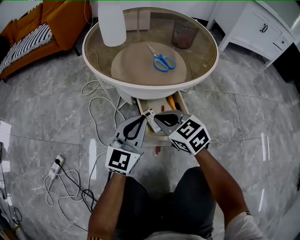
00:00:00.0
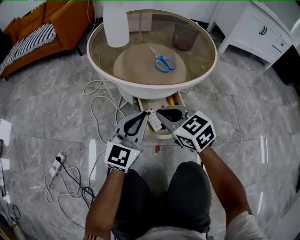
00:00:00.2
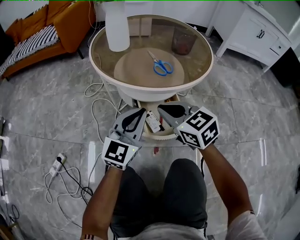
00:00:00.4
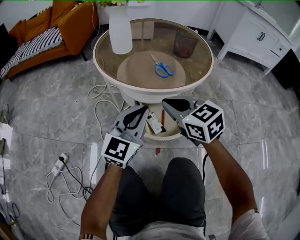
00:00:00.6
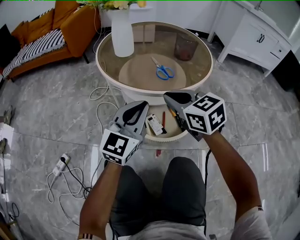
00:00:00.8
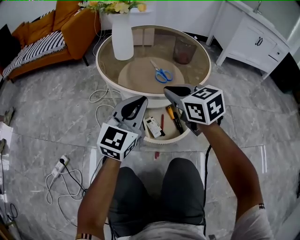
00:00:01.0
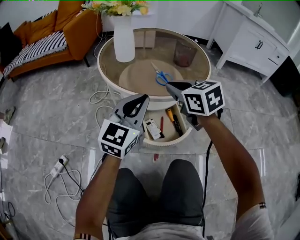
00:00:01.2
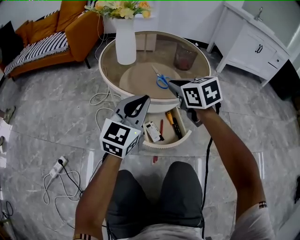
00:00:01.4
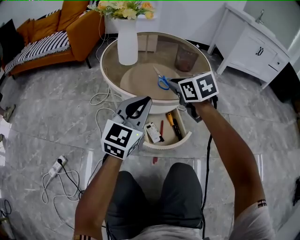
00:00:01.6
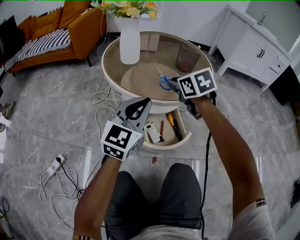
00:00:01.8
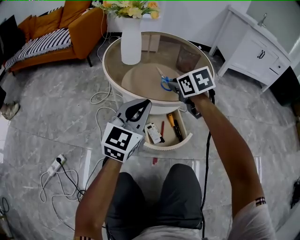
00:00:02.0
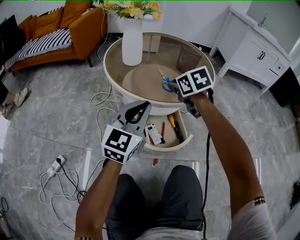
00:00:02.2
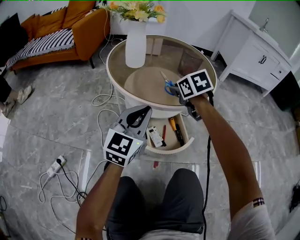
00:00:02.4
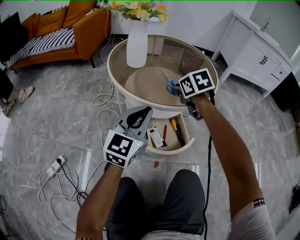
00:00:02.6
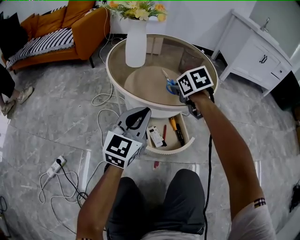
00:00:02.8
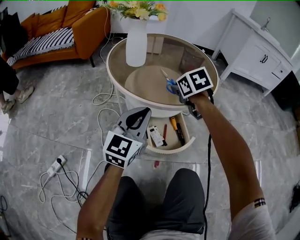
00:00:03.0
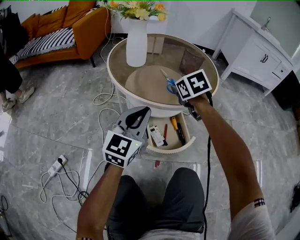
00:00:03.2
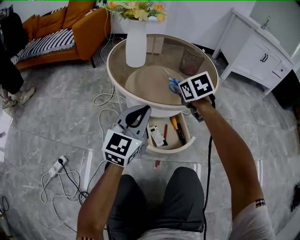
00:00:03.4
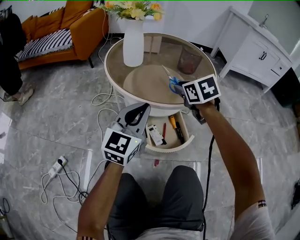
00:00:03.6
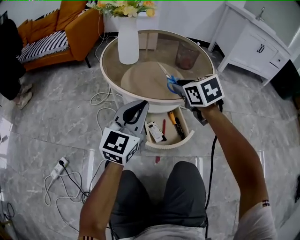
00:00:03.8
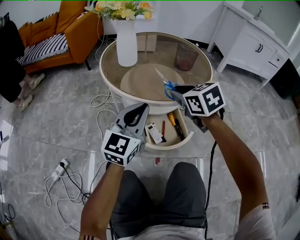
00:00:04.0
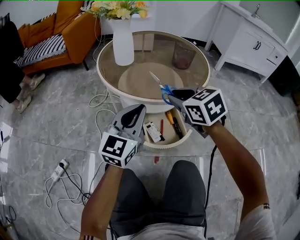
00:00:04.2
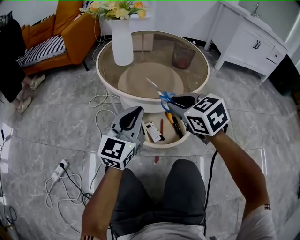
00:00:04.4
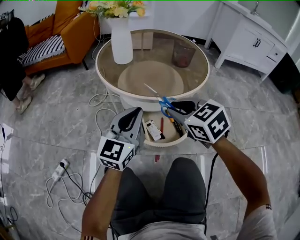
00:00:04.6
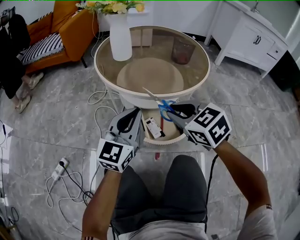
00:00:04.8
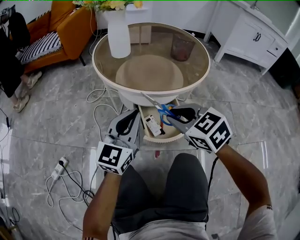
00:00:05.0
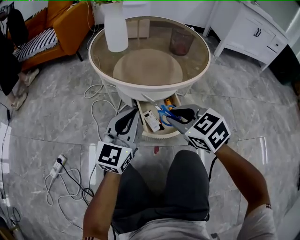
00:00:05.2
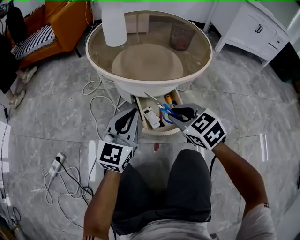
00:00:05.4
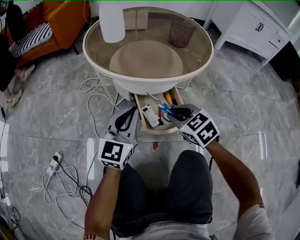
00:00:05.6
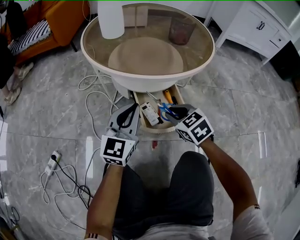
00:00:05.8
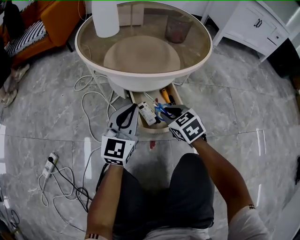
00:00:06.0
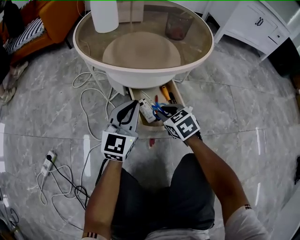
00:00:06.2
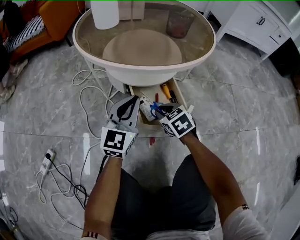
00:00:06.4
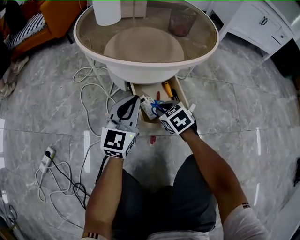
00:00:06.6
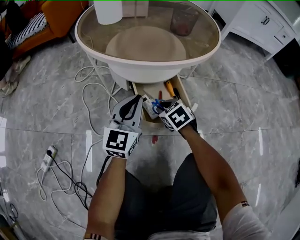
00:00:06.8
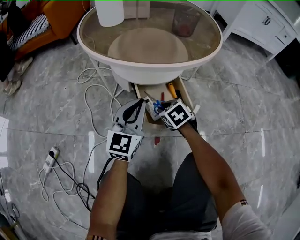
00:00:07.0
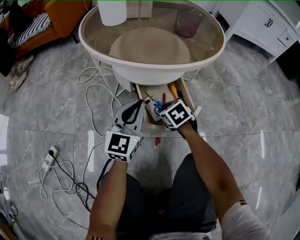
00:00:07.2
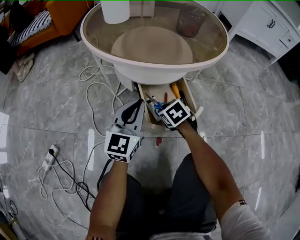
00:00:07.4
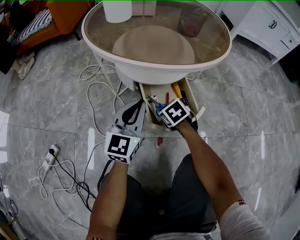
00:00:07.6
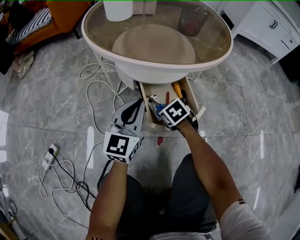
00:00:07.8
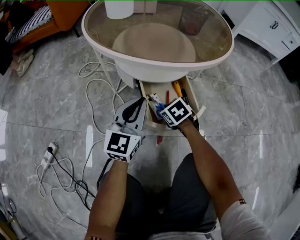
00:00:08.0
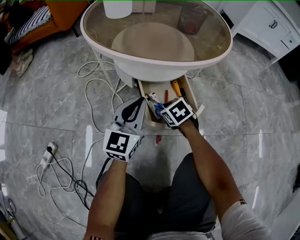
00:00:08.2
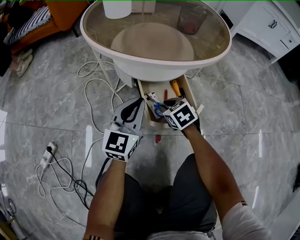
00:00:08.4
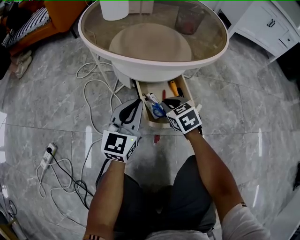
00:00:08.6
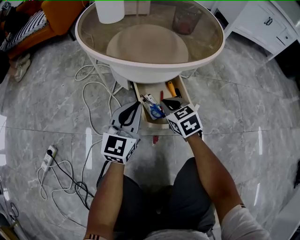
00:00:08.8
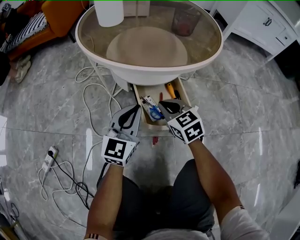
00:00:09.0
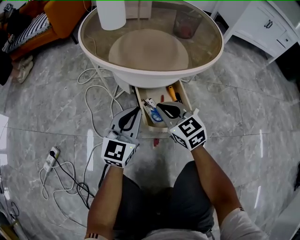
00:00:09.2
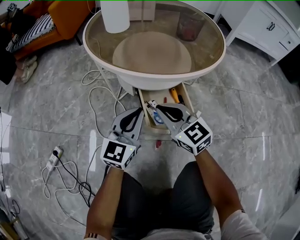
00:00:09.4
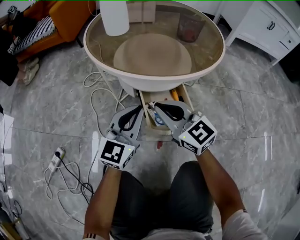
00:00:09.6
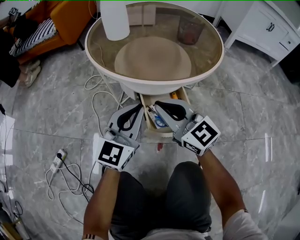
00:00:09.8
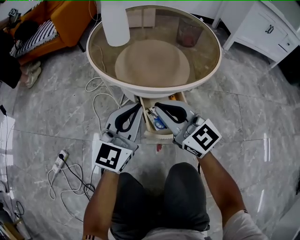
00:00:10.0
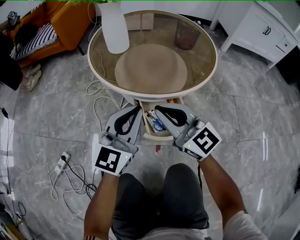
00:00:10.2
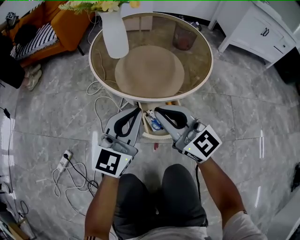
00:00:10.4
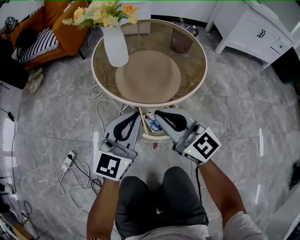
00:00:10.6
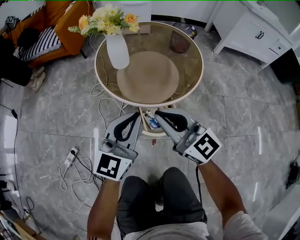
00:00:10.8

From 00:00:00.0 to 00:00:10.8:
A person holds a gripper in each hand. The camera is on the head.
From 00:00:00.0 to 00:00:01.6: The left gripper goes about 15 cm upward; the right gripper travels upward and forward by about 20 cm.
From 00:00:01.6 to 00:00:03.0: The right gripper moves approximately 5 cm.
From 00:00:03.0 to 00:00:04.6: The right gripper moves backward, about 15 cm, and changes its angle by roughly 20 degrees.
From 00:00:04.6 to 00:00:06.2: The left gripper heads downward, covering about 15 cm, while the right gripper is displaced downward by roughly 25 cm.
From 00:00:06.2 to 00:00:07.8: The right gripper shifts roughly 10 cm downward.
From 00:00:07.8 to 00:00:09.2: The right gripper is displaced upward by about 15 cm, and tips its fingers upward by some 40 degrees.
From 00:00:09.2 to 00:00:10.8: The grippers both shift upward by approximately 35 cm. The right gripper rotates some 30 degrees.

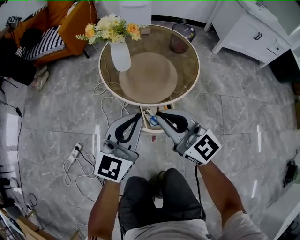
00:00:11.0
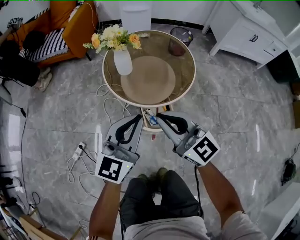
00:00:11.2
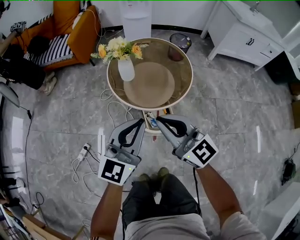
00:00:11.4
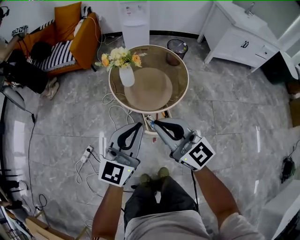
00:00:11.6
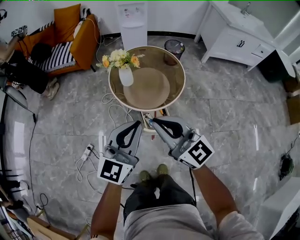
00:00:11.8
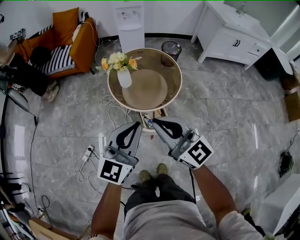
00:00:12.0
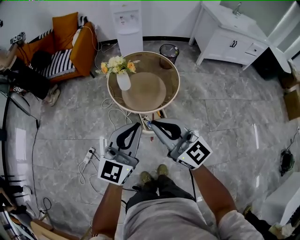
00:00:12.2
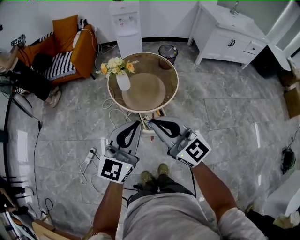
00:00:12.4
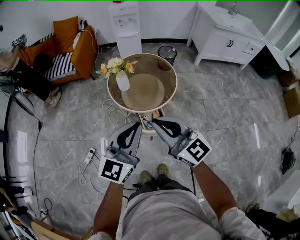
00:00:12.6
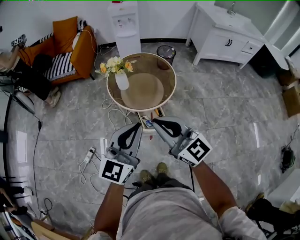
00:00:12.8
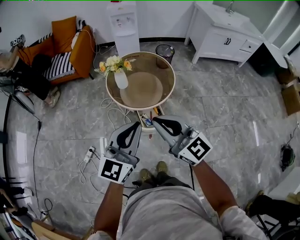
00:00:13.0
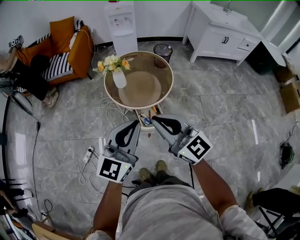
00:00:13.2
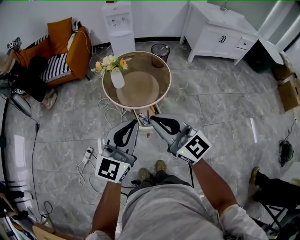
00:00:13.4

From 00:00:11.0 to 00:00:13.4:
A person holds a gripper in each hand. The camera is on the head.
From 00:00:11.0 to 00:00:12.2: Both grippers move upward, about 30 cm.
From 00:00:12.2 to 00:00:13.4: The two grippers go some 5 cm backward.

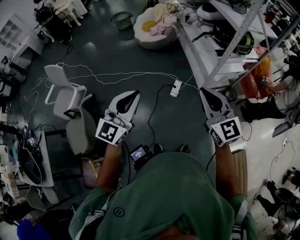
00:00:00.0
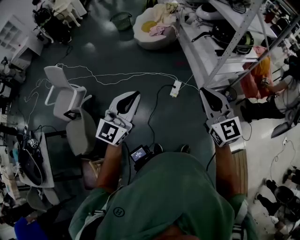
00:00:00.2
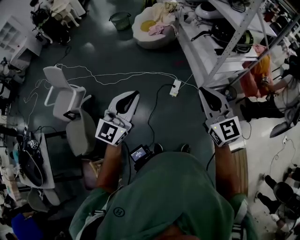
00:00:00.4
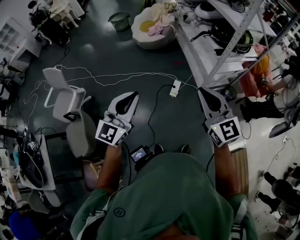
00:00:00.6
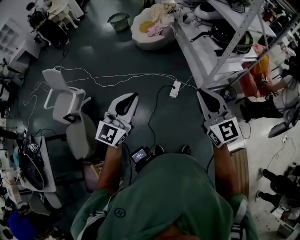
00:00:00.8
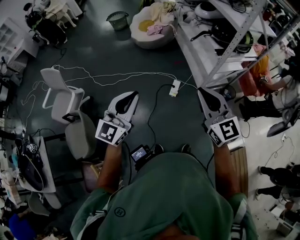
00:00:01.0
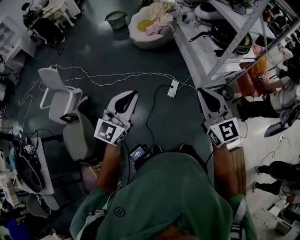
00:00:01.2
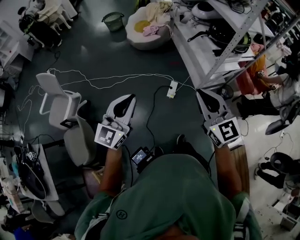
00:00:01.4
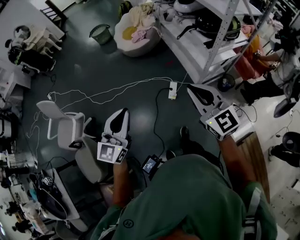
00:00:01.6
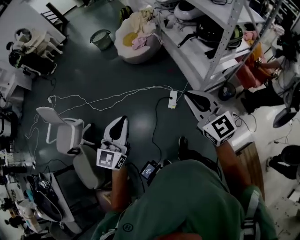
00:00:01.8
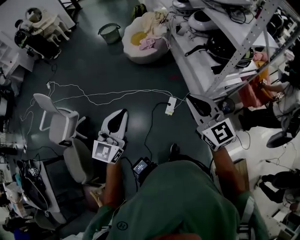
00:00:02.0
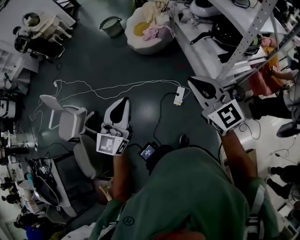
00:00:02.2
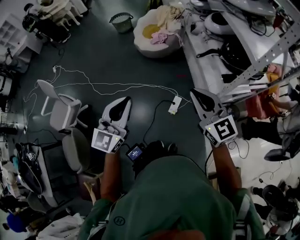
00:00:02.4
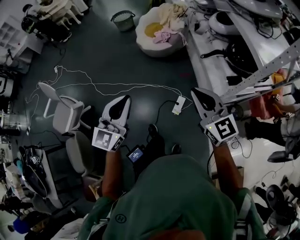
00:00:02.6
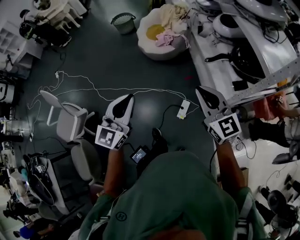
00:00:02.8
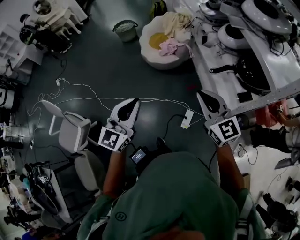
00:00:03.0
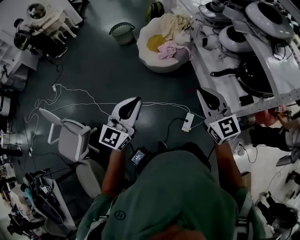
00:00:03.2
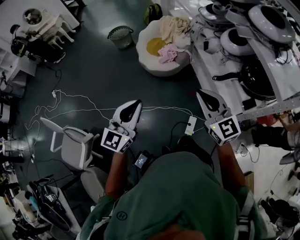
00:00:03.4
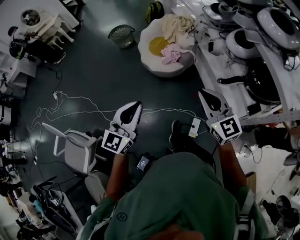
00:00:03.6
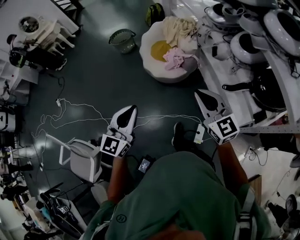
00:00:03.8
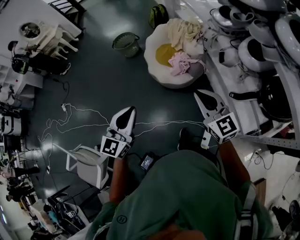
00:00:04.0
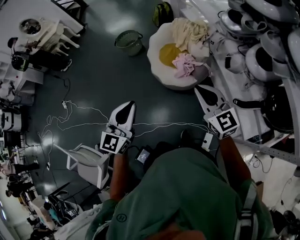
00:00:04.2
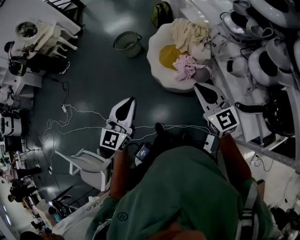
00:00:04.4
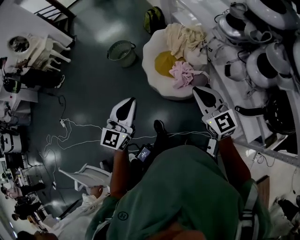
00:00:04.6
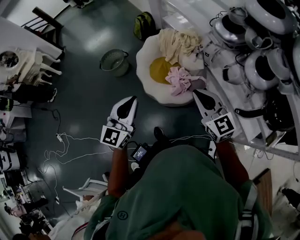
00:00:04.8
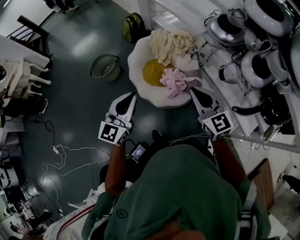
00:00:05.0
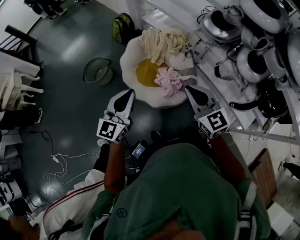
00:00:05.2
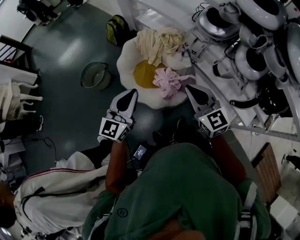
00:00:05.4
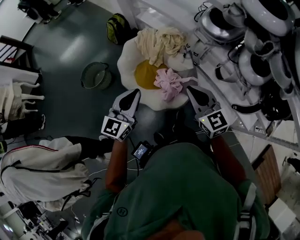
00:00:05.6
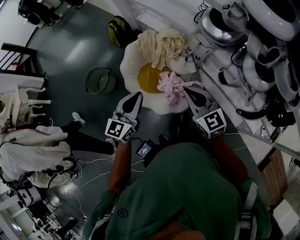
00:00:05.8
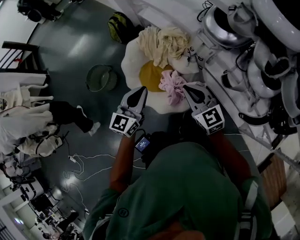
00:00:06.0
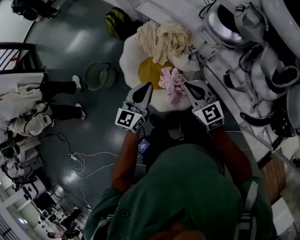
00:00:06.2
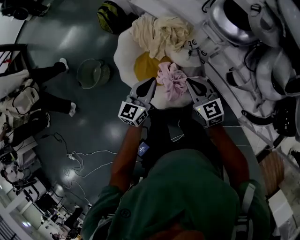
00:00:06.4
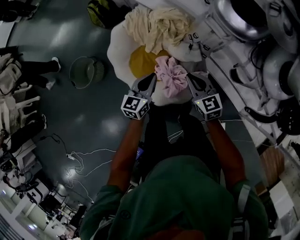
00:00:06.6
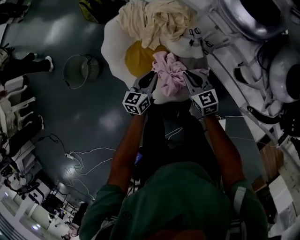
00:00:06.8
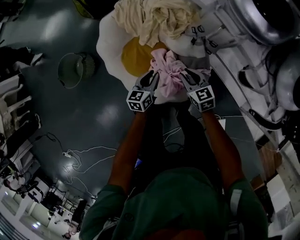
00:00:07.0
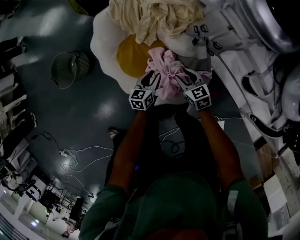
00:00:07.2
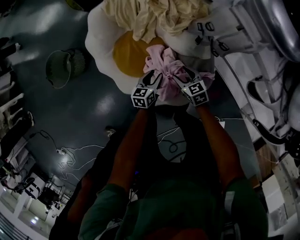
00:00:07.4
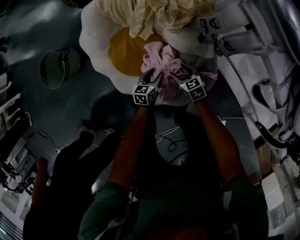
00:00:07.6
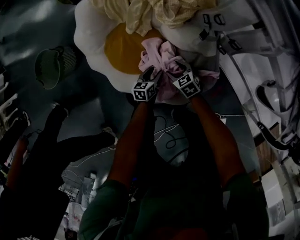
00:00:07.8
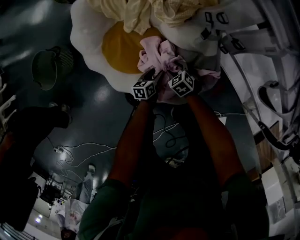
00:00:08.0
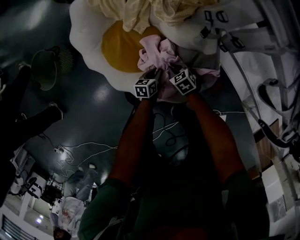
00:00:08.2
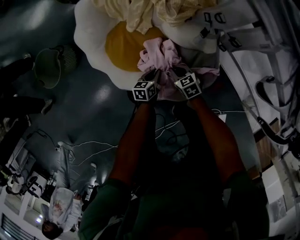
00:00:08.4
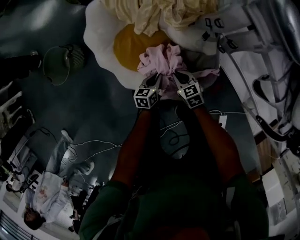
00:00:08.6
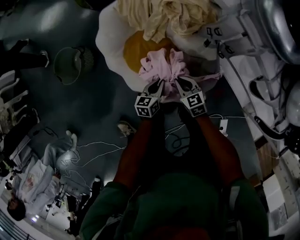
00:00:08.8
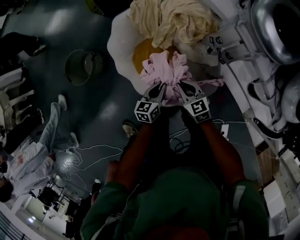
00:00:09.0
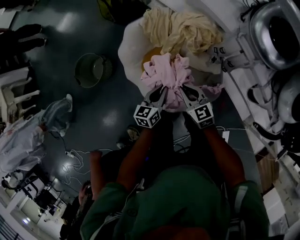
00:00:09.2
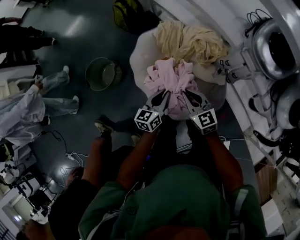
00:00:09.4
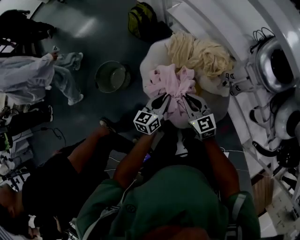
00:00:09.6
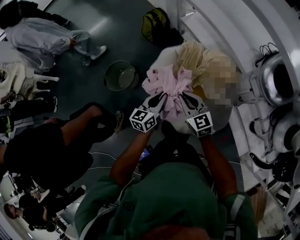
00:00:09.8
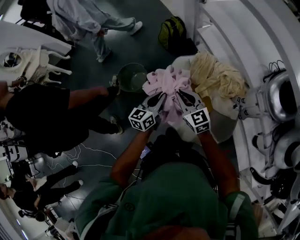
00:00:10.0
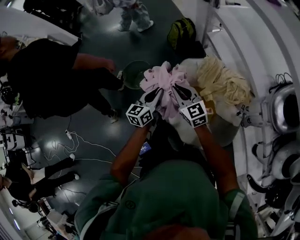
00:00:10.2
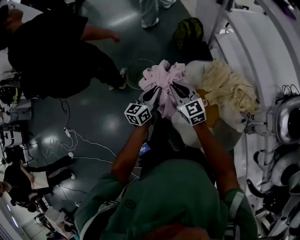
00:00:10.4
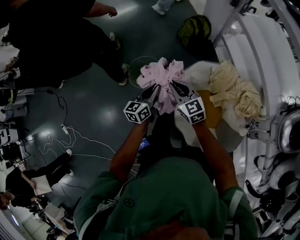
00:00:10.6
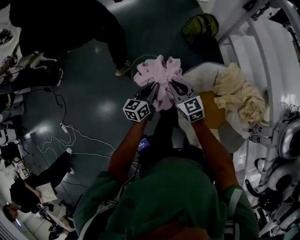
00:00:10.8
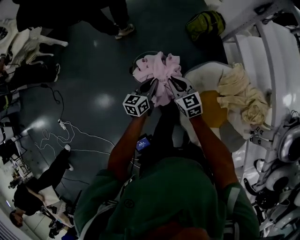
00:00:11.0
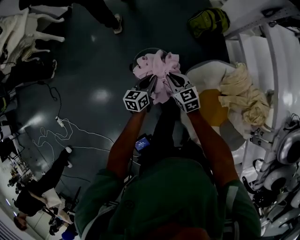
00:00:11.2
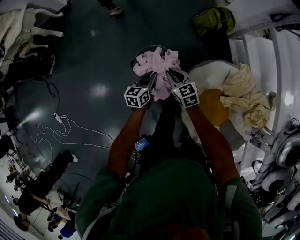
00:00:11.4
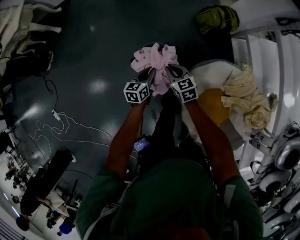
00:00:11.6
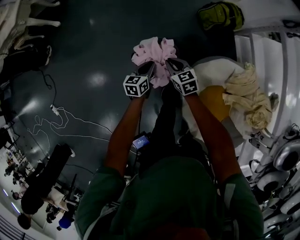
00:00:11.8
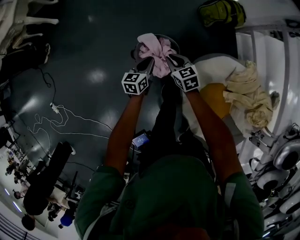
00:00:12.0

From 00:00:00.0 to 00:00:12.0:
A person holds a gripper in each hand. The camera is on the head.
From 00:00:00.0 to 00:00:01.6: The left gripper is displaced forward and to the left by roughly 10 cm, while the right gripper moves forward, about 10 cm.
From 00:00:01.6 to 00:00:03.0: Both grippers travel together forward, some 35 cm.
From 00:00:03.0 to 00:00:04.4: Both grippers are carried forward, roughly 50 cm.
From 00:00:04.4 to 00:00:06.0: The right gripper changes place by roughly 35 cm, and changes its angle by approximately 20 degrees. Meanwhile the left gripper moves about 50 cm, and rotates roughly 30 degrees.
From 00:00:06.0 to 00:00:07.6: Both grippers move downward, about 60 cm. The right gripper angles its fingers downward, by some 30 degrees, and opens up. Meanwhile the left gripper tips its fingers downward by some 30 degrees, and opens up.
From 00:00:07.6 to 00:00:09.0: The two grippers go about 25 cm upward. The right gripper closes its fingers; the left gripper closes up.
From 00:00:09.0 to 00:00:10.4: The right gripper shifts by some 50 cm, and swivels about 30 degrees. Meanwhile the left gripper changes place by some 50 cm, and swivels about 30 degrees.
From 00:00:10.4 to 00:00:12.0: The right gripper goes approximately 50 cm forward, downward and to the left, and turns by about 30 degrees; the left gripper goes approximately 40 cm forward, to the left and downward.
